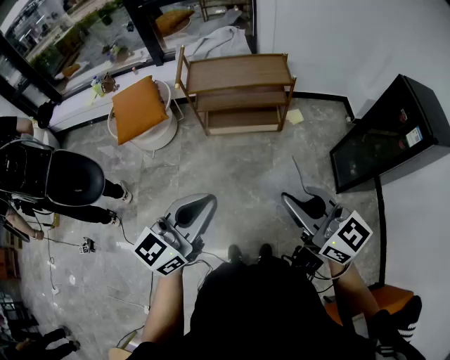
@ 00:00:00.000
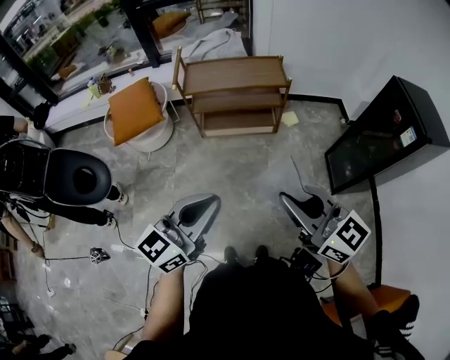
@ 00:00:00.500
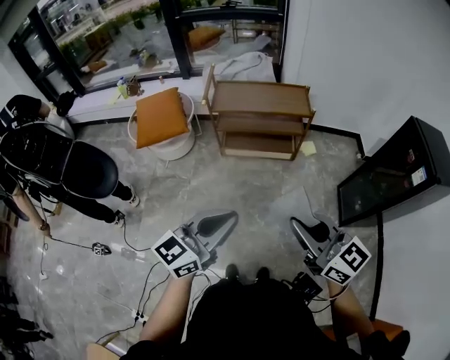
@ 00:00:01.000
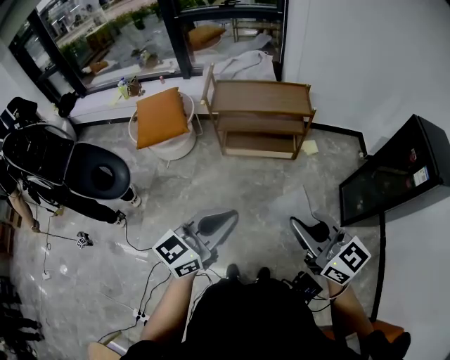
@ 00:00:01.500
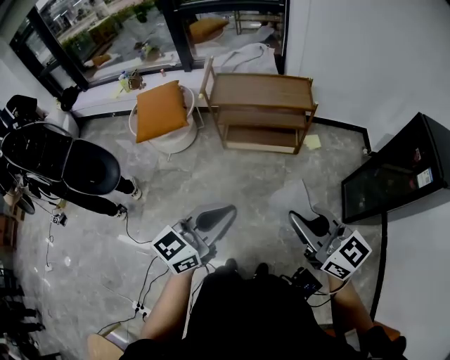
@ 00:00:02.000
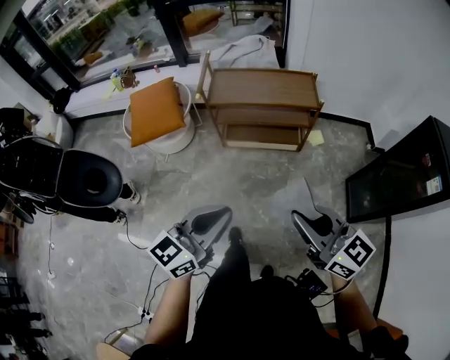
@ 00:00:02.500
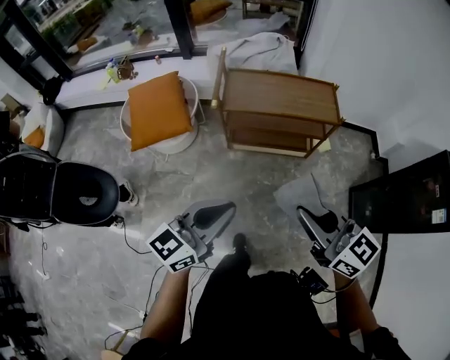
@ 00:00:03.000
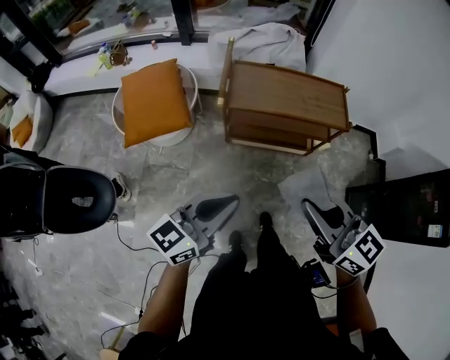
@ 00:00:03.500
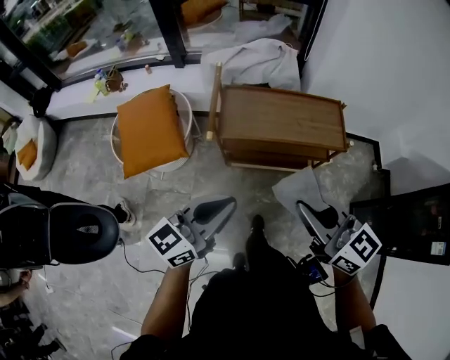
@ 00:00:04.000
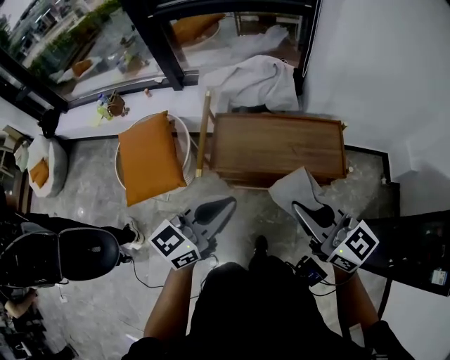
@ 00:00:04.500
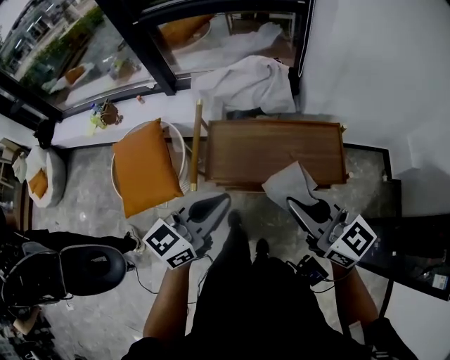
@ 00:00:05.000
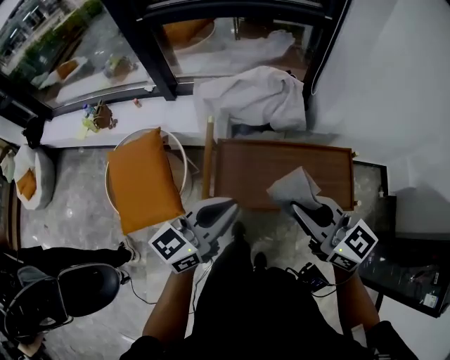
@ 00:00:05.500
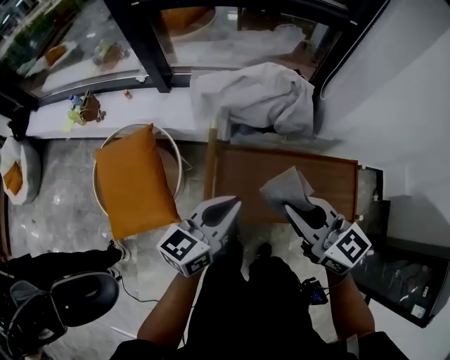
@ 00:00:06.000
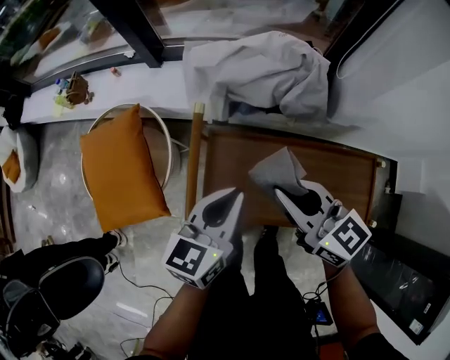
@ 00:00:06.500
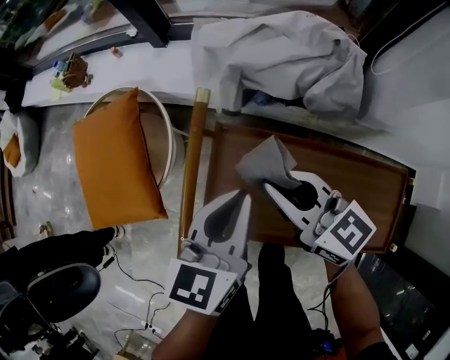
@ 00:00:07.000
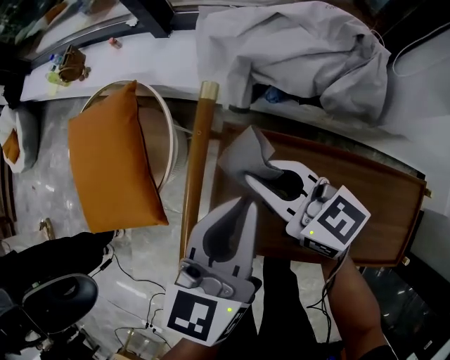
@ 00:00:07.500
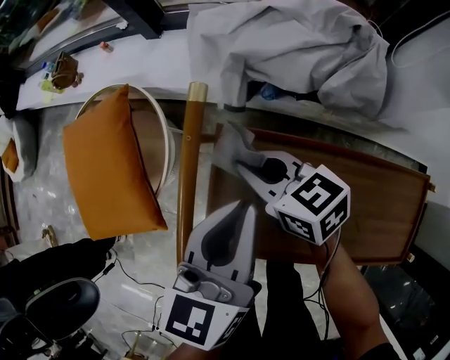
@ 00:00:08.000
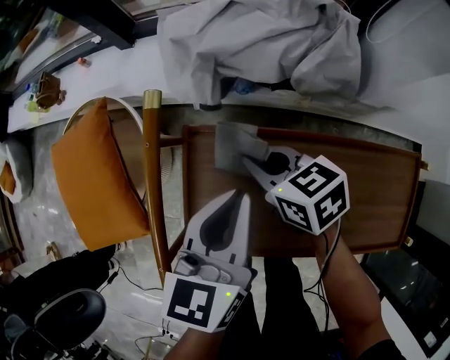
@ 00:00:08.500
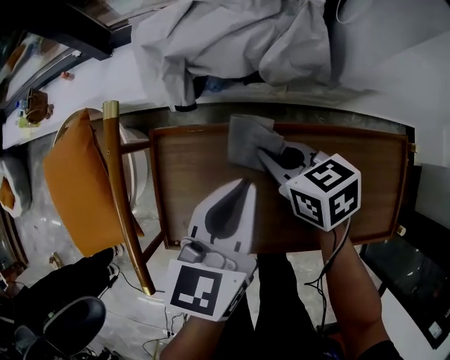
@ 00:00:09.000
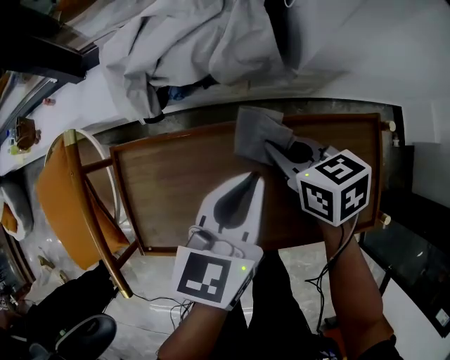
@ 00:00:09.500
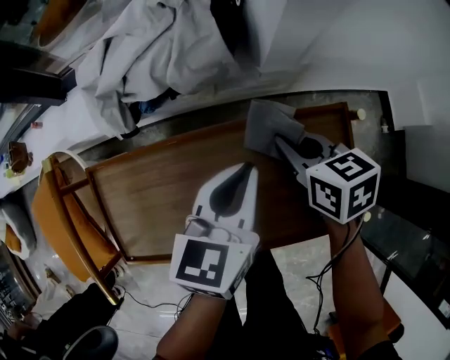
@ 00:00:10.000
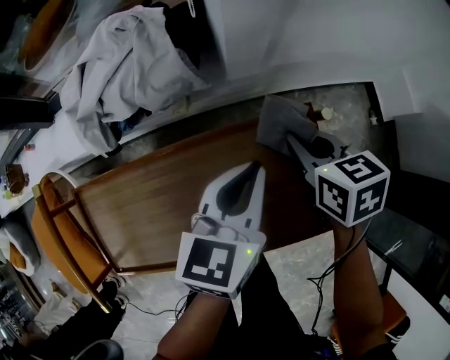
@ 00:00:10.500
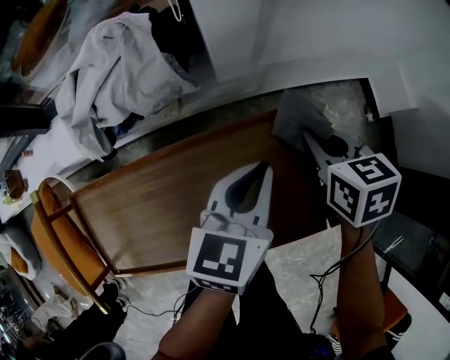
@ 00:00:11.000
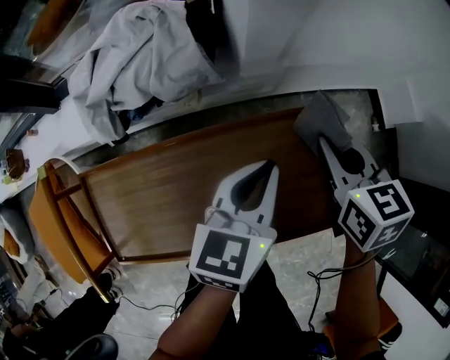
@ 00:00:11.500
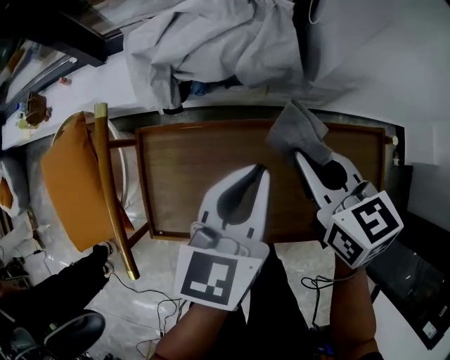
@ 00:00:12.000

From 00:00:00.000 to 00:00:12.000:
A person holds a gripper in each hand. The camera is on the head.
From 00:00:00.000 to 00:00:02.000: The grippers stay close to where they were, moving slightly.
From 00:00:02.000 to 00:00:04.000: The two grippers go some 40 cm forward.
From 00:00:04.000 to 00:00:06.000: The grippers both shift forward by about 35 cm.
From 00:00:06.000 to 00:00:08.000: The left gripper heads downward and forward, covering roughly 20 cm, and swivels some 30 degrees, while the right gripper shifts roughly 35 cm downward and forward, and turns by approximately 20 degrees.
From 00:00:08.000 to 00:00:10.000: The right gripper ends up some 40 cm from where it was, and changes its angle by about 40 degrees; the left gripper shifts by roughly 35 cm, and turns by about 30 degrees.
From 00:00:10.000 to 00:00:12.000: The grippers both shift to the left and upward by approximately 15 cm.

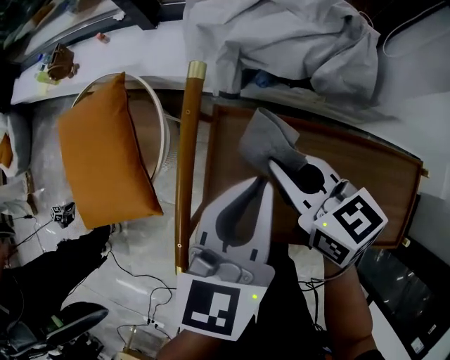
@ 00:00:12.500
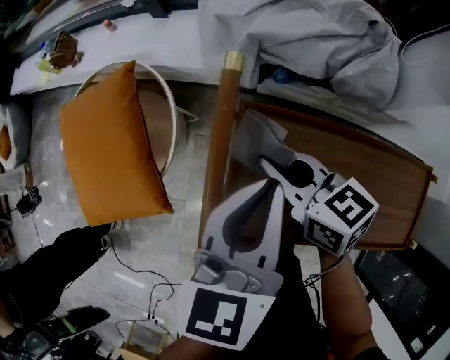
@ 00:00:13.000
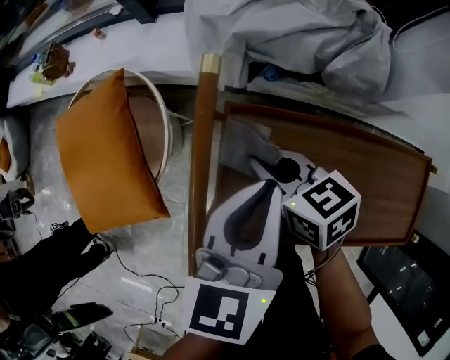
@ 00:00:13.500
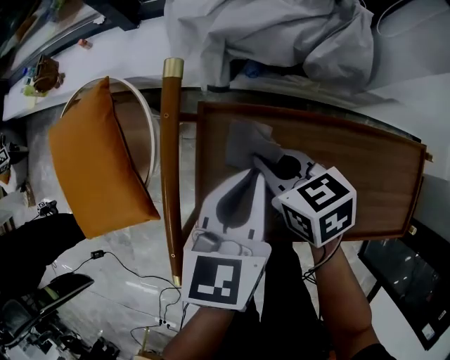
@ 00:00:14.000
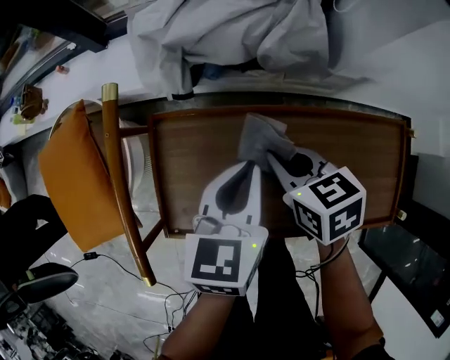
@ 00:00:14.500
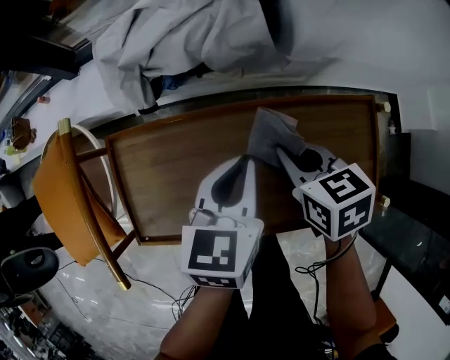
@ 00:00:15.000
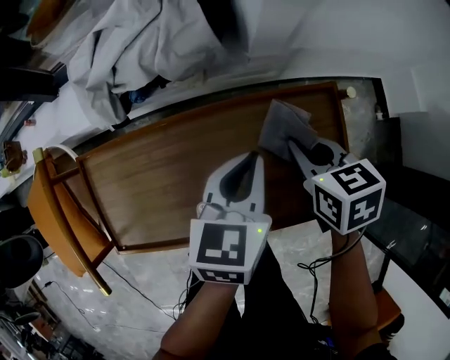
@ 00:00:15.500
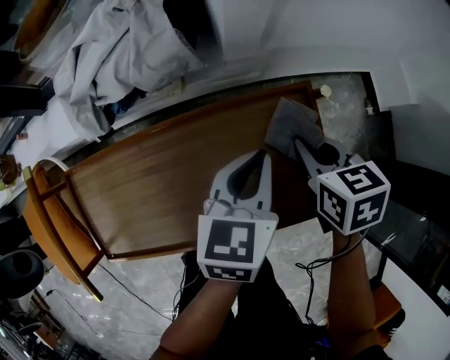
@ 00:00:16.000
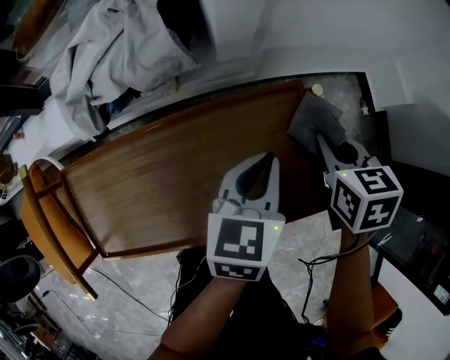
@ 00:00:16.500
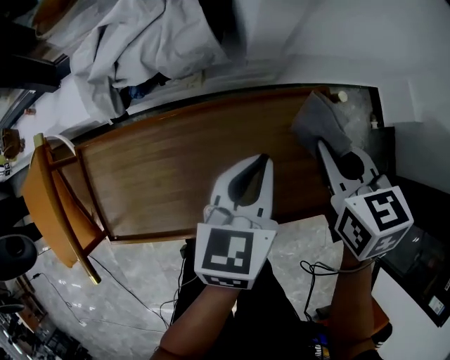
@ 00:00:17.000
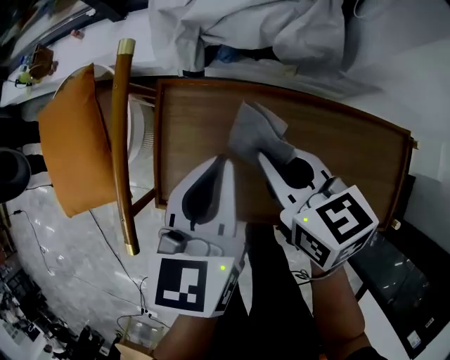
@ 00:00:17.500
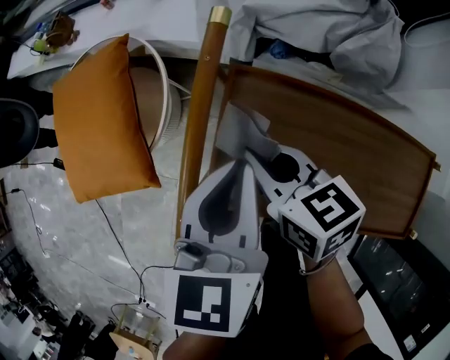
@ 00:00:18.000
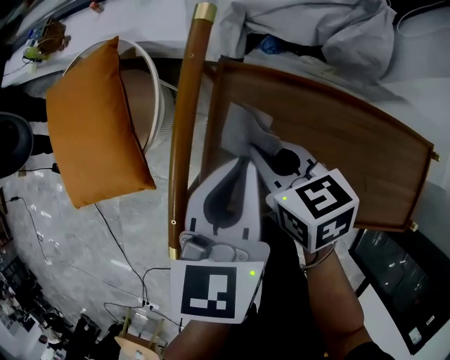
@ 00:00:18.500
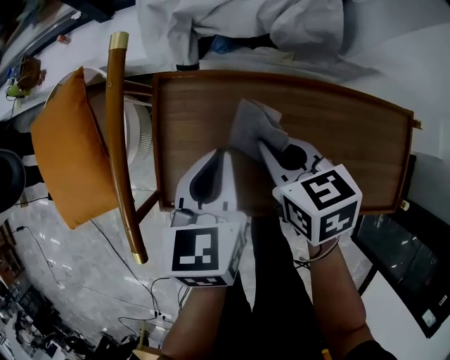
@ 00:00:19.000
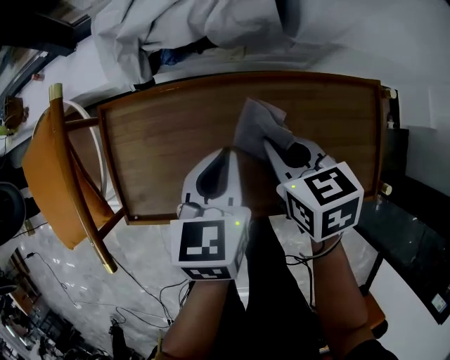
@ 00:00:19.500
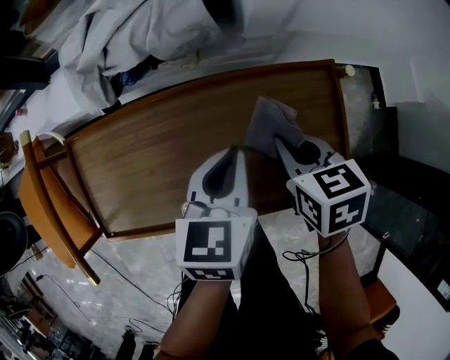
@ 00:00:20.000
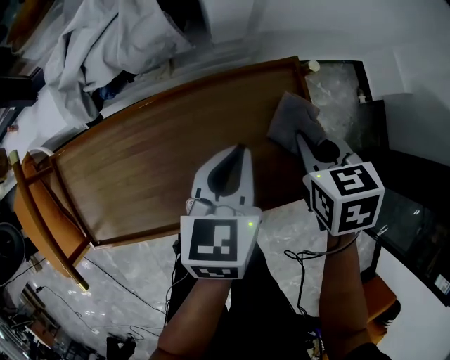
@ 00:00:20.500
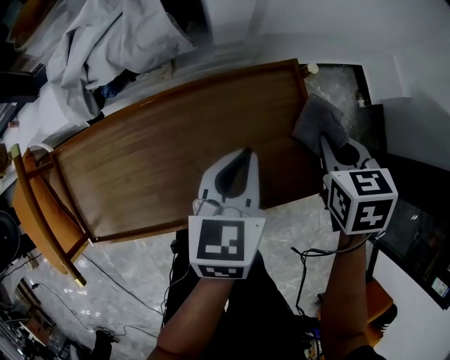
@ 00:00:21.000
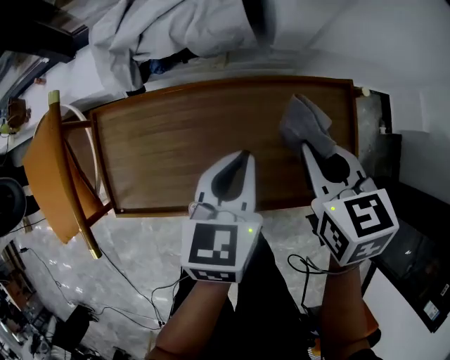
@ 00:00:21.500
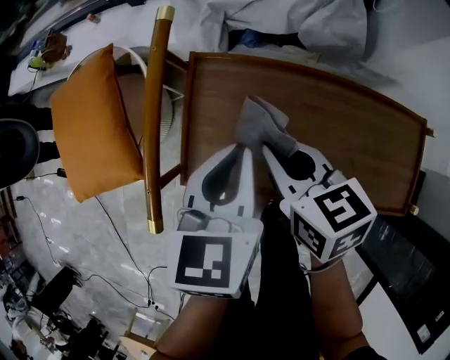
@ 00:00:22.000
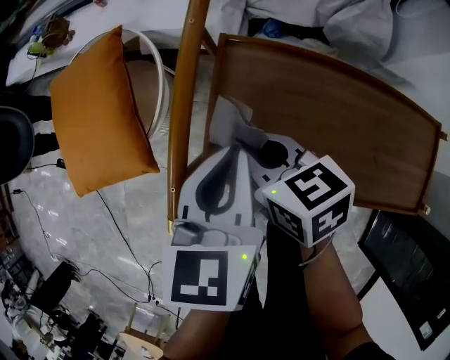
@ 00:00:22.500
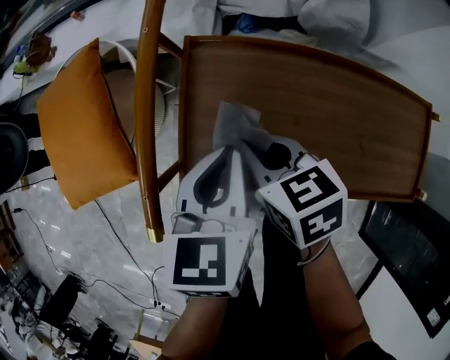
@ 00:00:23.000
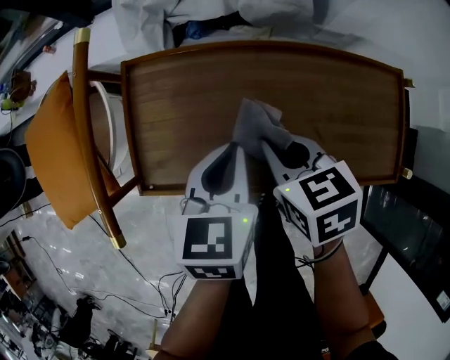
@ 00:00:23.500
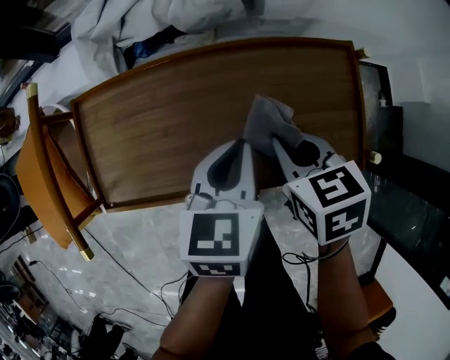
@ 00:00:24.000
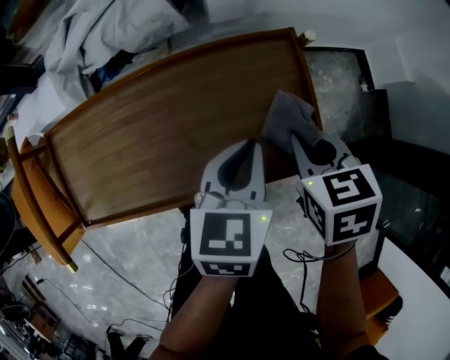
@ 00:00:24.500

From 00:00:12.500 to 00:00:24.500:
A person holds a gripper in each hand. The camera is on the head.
From 00:00:12.500 to 00:00:14.500: Both grippers move to the right and downward, some 15 cm. The right gripper turns by approximately 20 degrees.
From 00:00:14.500 to 00:00:16.500: The left gripper ends up approximately 30 cm from where it was, and changes its angle by roughly 20 degrees. Meanwhile the right gripper changes place by about 40 cm, and turns by roughly 30 degrees.
From 00:00:16.500 to 00:00:18.500: The two grippers travel together, about 50 cm. The right gripper swivels some 40 degrees. Meanwhile the left gripper changes its angle by about 40 degrees.
From 00:00:18.500 to 00:00:20.500: The pair of grippers is taken about 50 cm. The right gripper rotates approximately 40 degrees. The left gripper swivels about 30 degrees.
From 00:00:20.500 to 00:00:22.500: Both grippers are carried roughly 50 cm. The right gripper rotates about 50 degrees; the left gripper rotates roughly 30 degrees.
From 00:00:22.500 to 00:00:24.500: The pair of grippers is taken roughly 50 cm. The right gripper turns by approximately 40 degrees, while the left gripper rotates some 30 degrees.

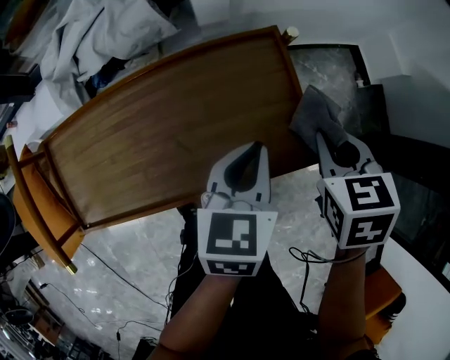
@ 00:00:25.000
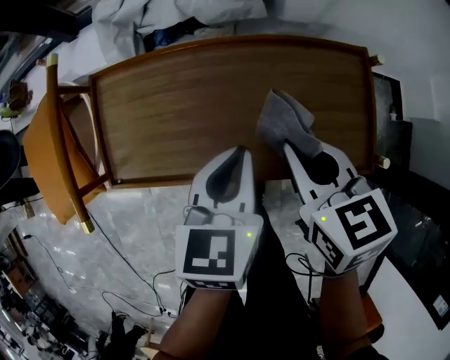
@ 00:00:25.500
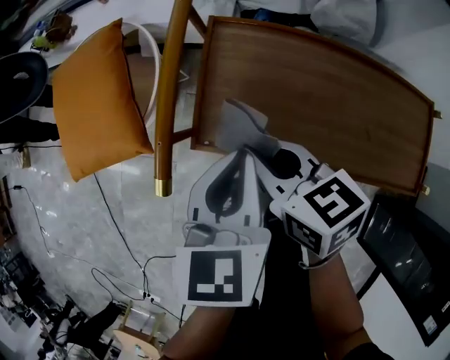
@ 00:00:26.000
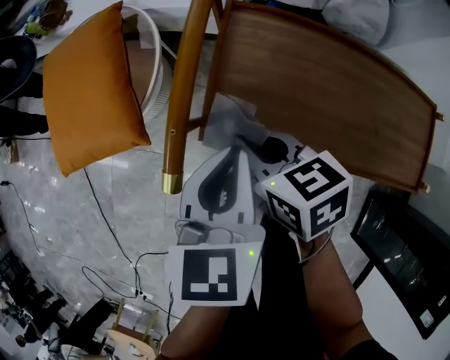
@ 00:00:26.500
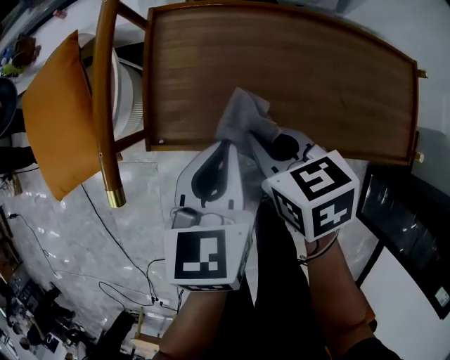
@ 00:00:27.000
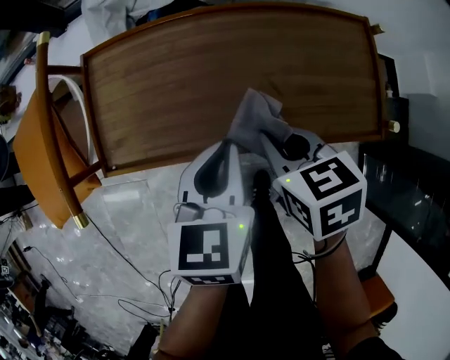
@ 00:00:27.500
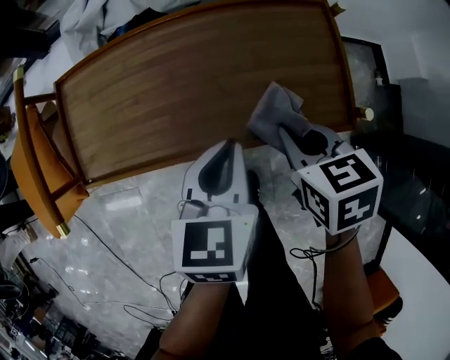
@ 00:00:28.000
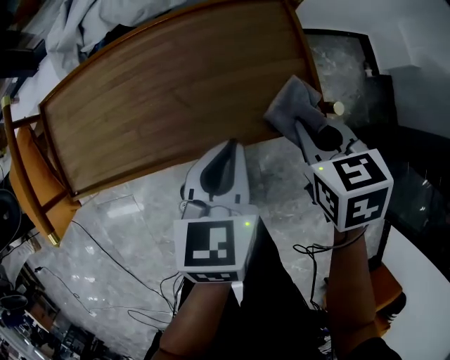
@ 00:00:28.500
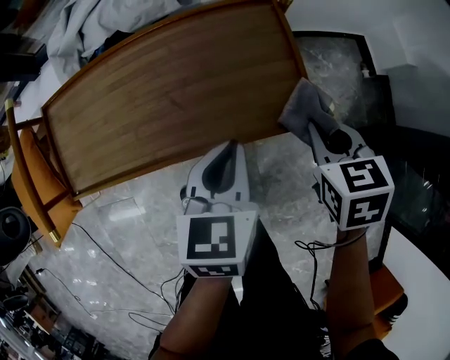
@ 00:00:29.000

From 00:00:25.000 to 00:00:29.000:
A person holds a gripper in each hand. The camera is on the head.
From 00:00:25.000 to 00:00:27.000: The right gripper changes place by roughly 40 cm, and swivels roughly 40 degrees, while the left gripper shifts by about 35 cm, and rotates some 30 degrees.
From 00:00:27.000 to 00:00:29.000: The left gripper shifts by about 30 cm. Meanwhile the right gripper shifts by about 40 cm, and changes its angle by some 30 degrees.
